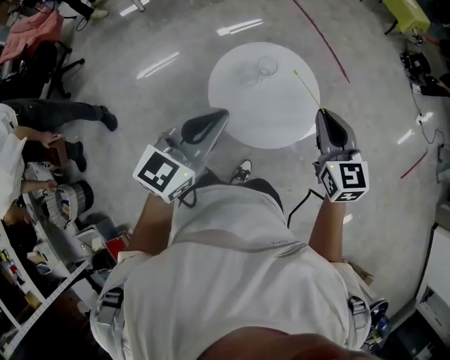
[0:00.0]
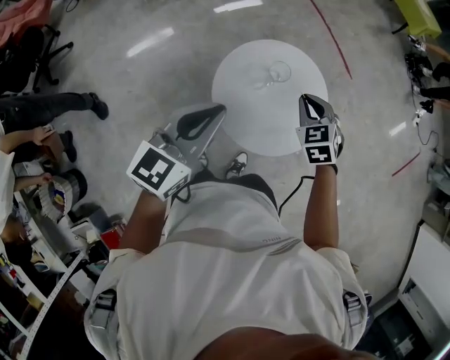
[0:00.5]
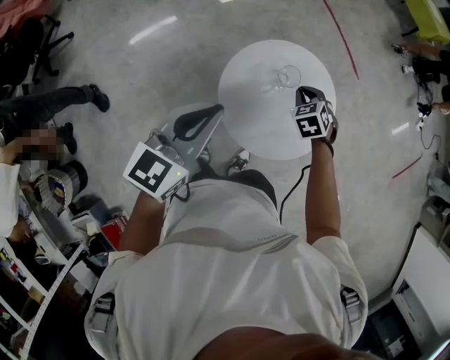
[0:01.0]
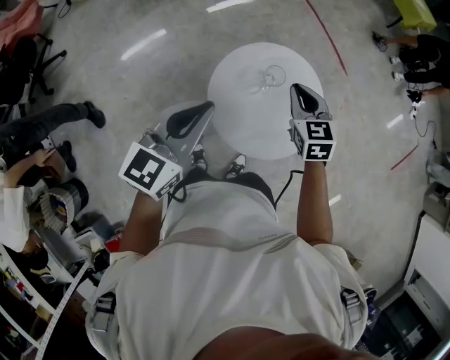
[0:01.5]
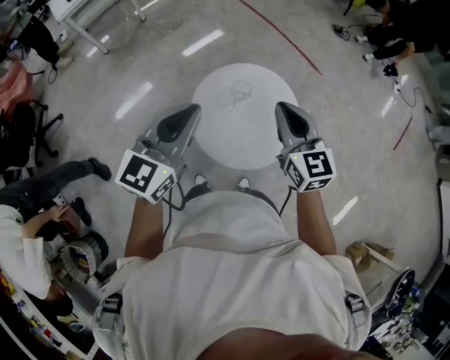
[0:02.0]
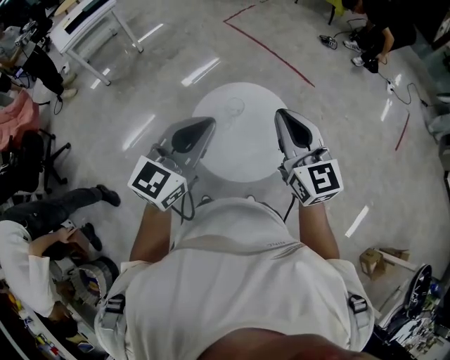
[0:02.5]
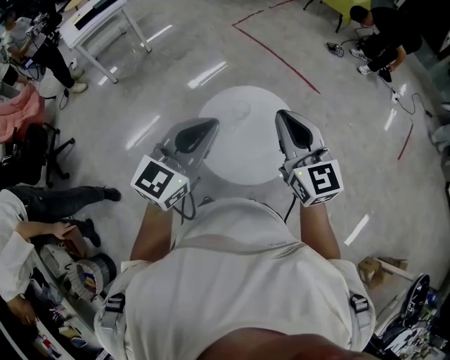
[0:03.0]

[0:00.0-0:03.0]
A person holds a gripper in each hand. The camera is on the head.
0:00.0 to 0:01.5: The left gripper is displaced to the left and forward by roughly 15 cm. Meanwhile the right gripper heads to the left, forward and downward, covering about 25 cm.
0:01.5 to 0:03.0: The right gripper is displaced upward, backward and to the right by roughly 30 cm, and angles its fingers upward, by about 30 degrees. The left gripper heads to the right and upward, covering roughly 20 cm, and rotates approximately 20 degrees.

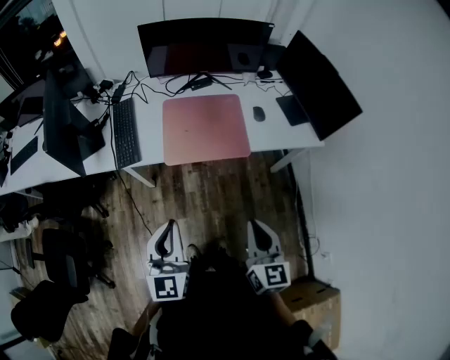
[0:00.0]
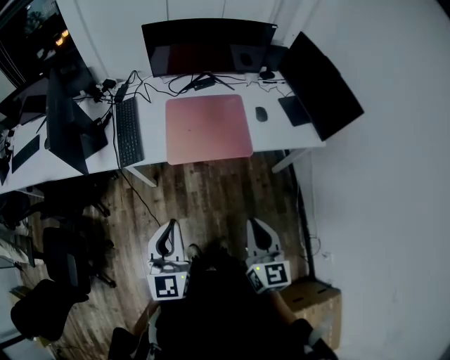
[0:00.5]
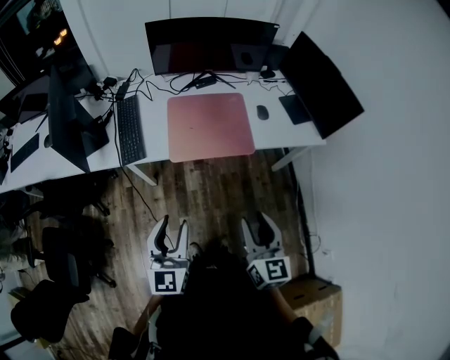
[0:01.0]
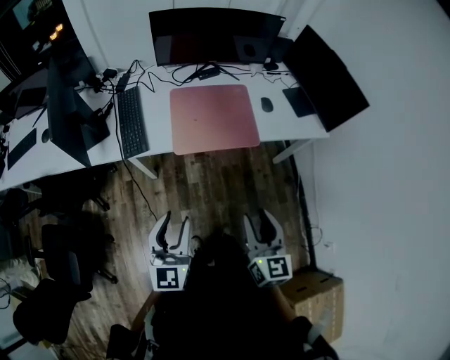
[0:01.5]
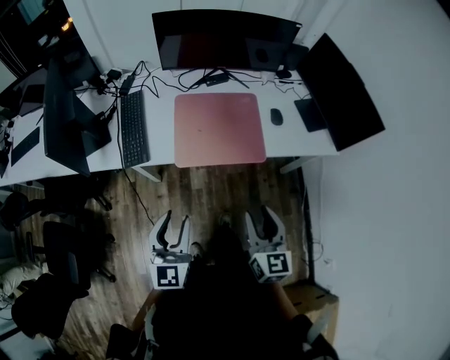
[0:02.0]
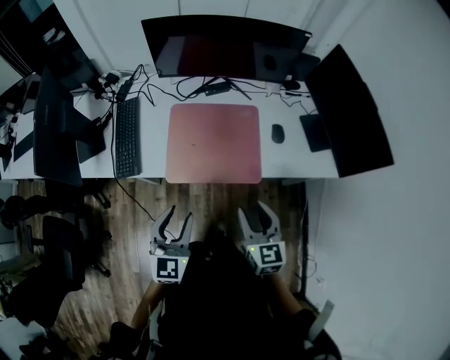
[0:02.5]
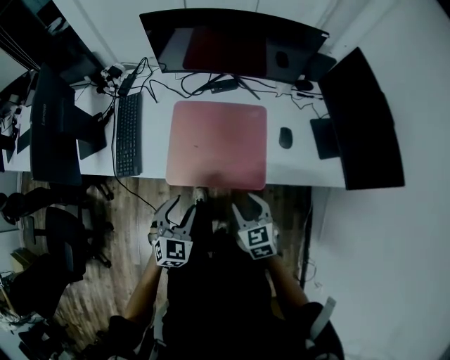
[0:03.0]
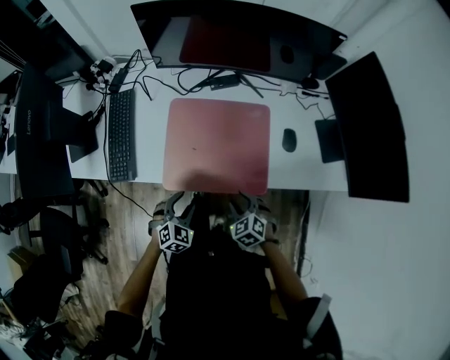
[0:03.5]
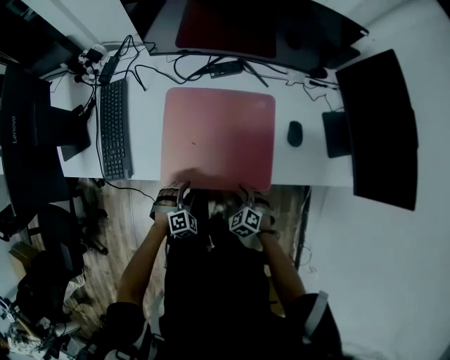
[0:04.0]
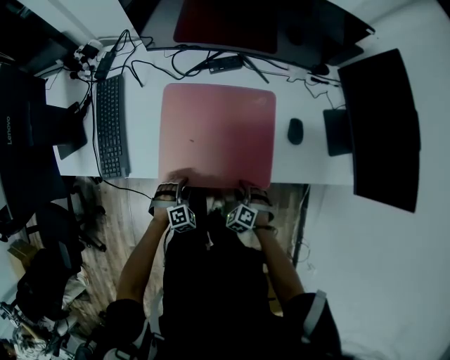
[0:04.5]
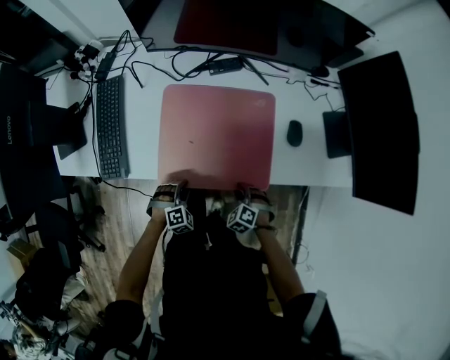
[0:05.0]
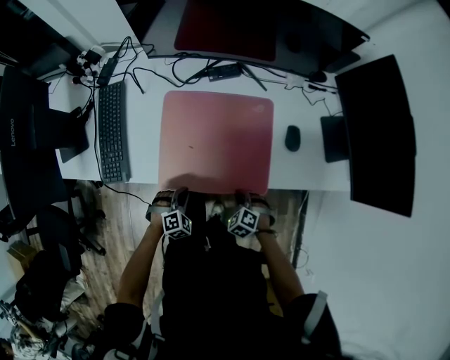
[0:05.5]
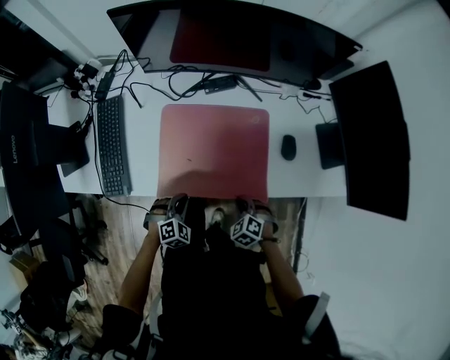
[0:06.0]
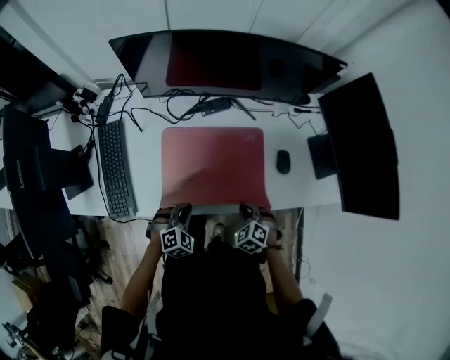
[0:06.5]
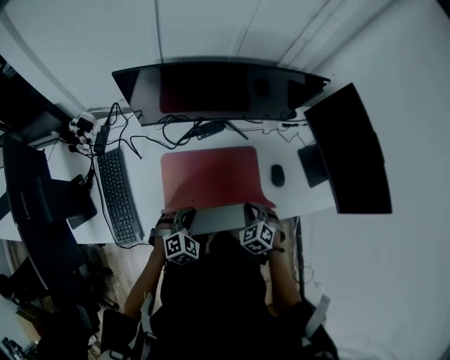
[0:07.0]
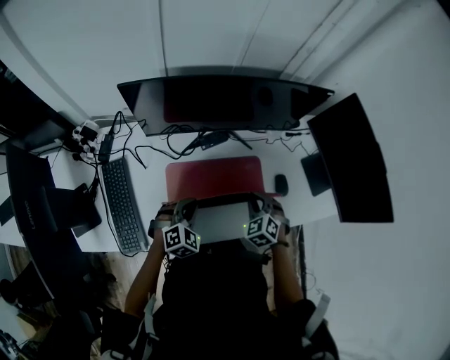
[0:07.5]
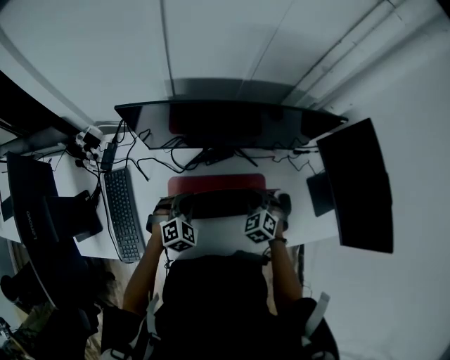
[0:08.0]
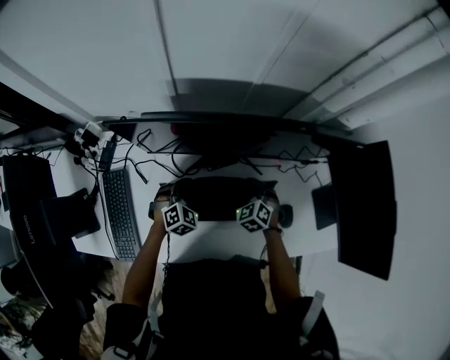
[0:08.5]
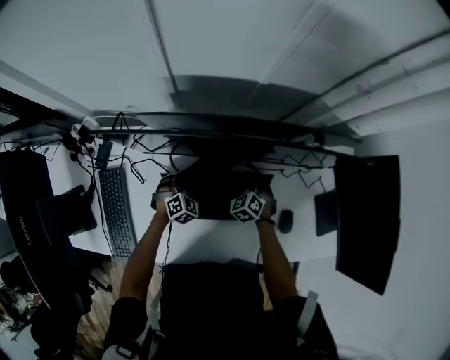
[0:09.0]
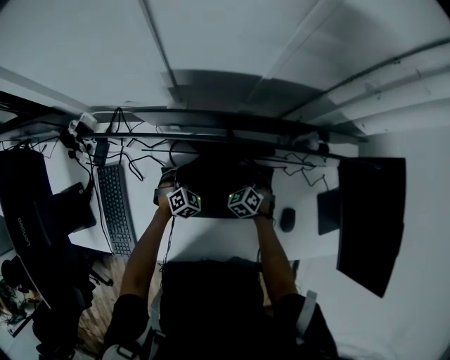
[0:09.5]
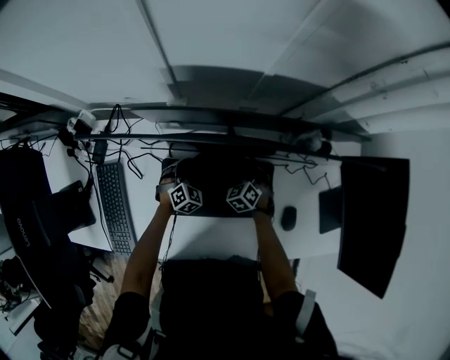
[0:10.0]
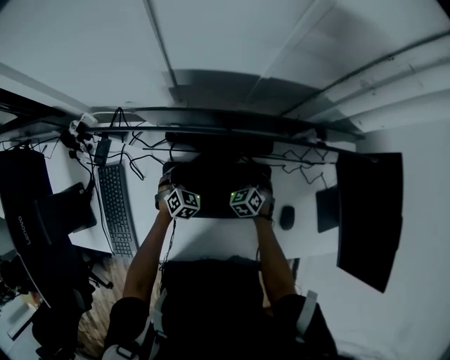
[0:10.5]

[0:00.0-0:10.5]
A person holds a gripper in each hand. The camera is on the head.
0:00.0 to 0:02.0: The right gripper moves forward, some 10 cm, and opens up; the left gripper shifts approximately 10 cm forward and downward, and opens its fingers.
0:02.0 to 0:04.0: The grippers both shift downward and forward by roughly 40 cm. The left gripper tips its fingers downward by about 50 degrees; the right gripper angles its fingers downward, by about 50 degrees.
0:04.0 to 0:06.5: Both grippers move upward and forward, roughly 10 cm. The left gripper closes up. The right gripper closes up.
0:06.5 to 0:08.5: Both grippers travel together forward, approximately 30 cm.
0:08.5 to 0:10.5: Both grippers travel together downward and forward, about 10 cm.

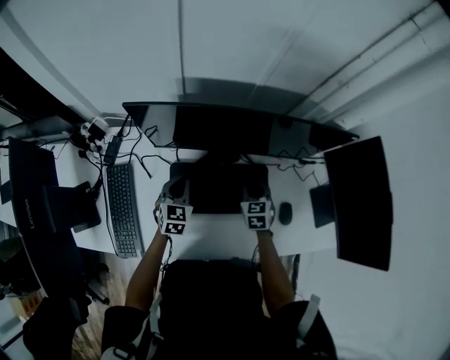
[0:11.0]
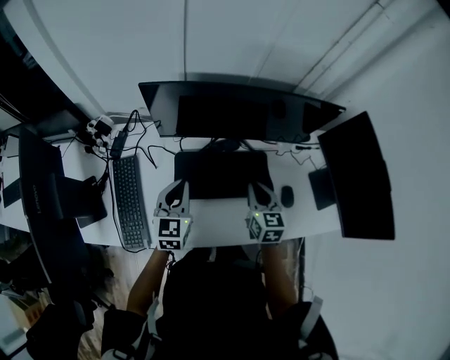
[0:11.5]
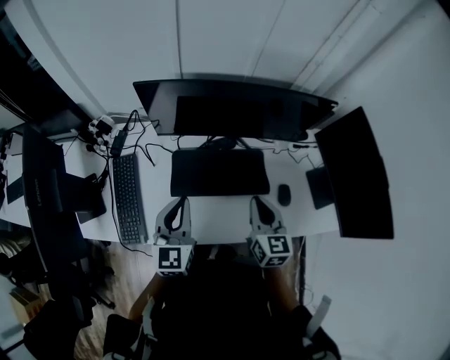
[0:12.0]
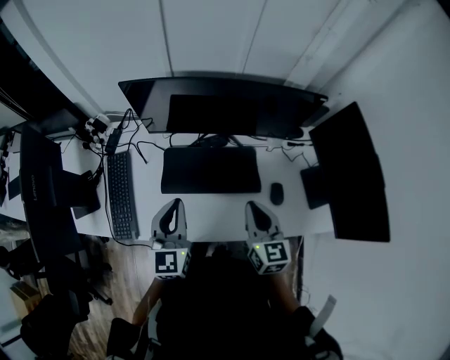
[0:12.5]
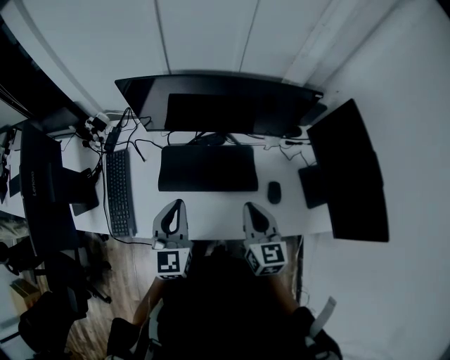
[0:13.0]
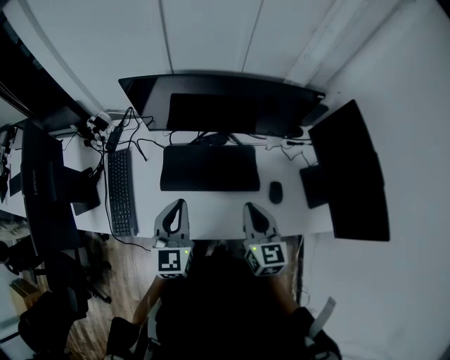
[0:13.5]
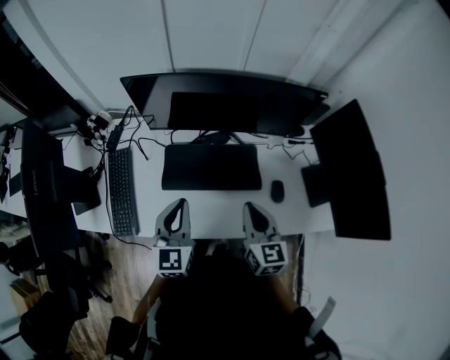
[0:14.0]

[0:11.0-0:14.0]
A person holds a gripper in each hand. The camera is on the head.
0:11.0 to 0:12.5: The left gripper travels upward and backward by roughly 25 cm, and swivels some 30 degrees; the right gripper moves backward and upward, approximately 25 cm, and rotates approximately 30 degrees.
0:12.5 to 0:14.0: The grippers stay close to where they were, moving slightly.

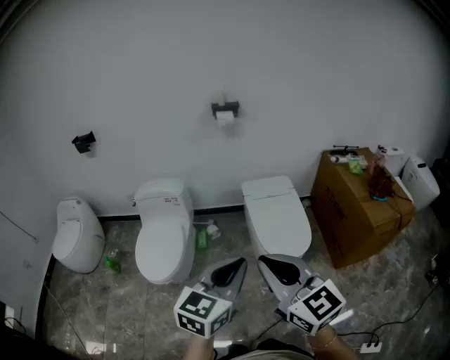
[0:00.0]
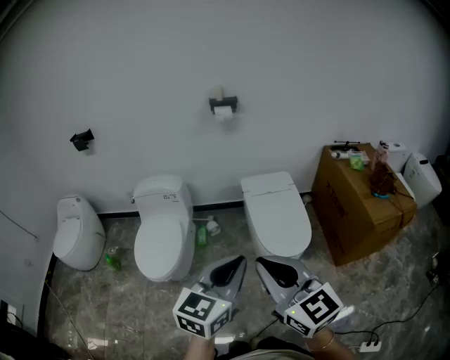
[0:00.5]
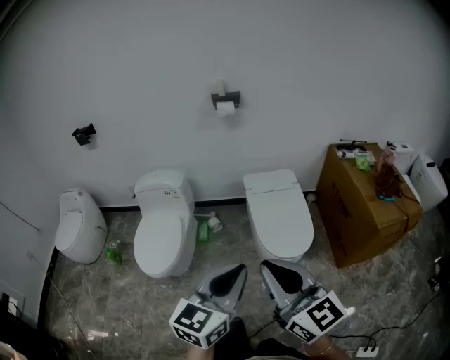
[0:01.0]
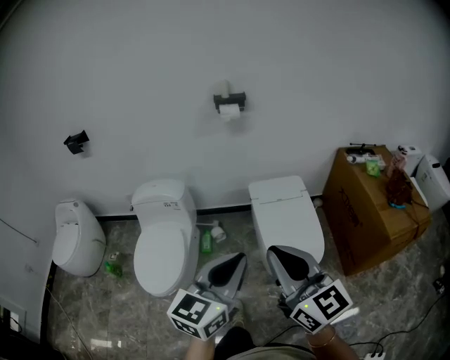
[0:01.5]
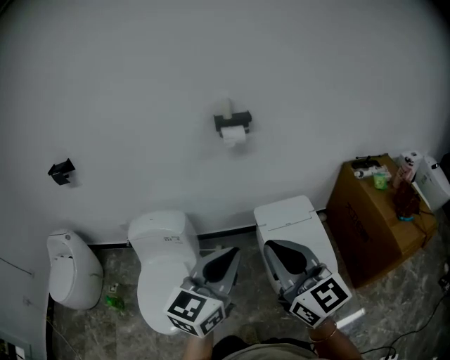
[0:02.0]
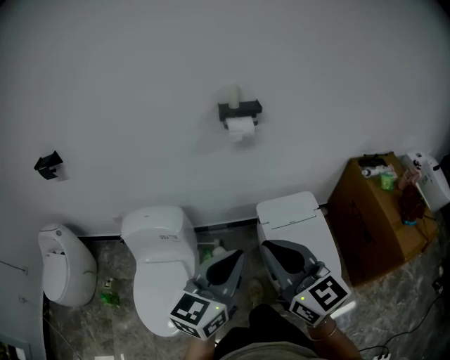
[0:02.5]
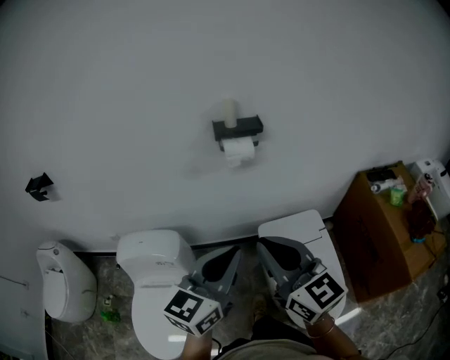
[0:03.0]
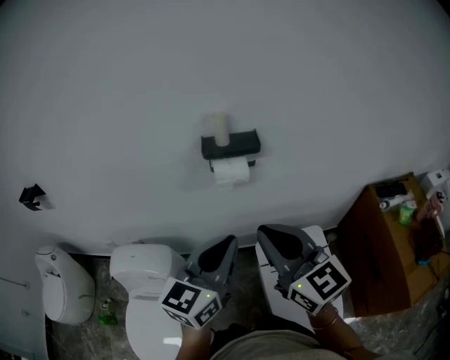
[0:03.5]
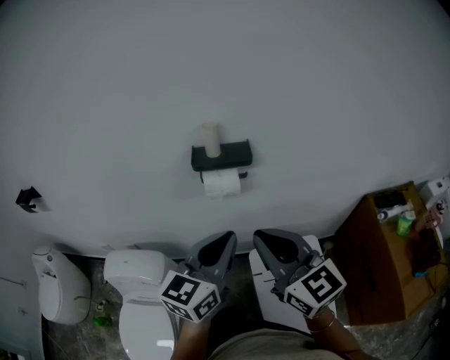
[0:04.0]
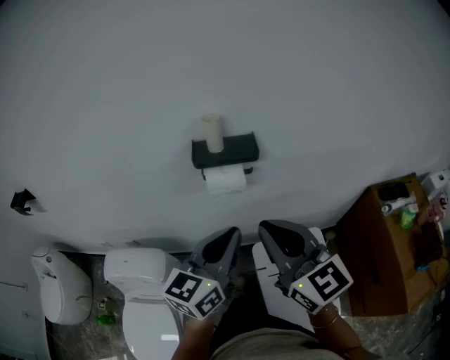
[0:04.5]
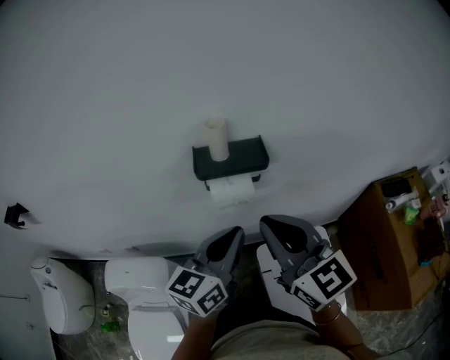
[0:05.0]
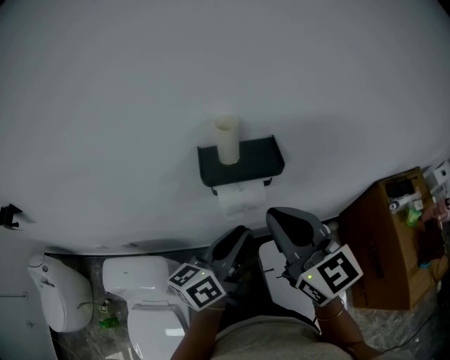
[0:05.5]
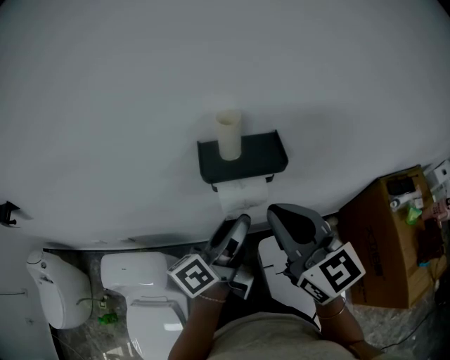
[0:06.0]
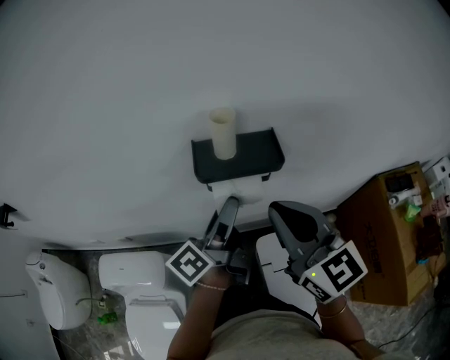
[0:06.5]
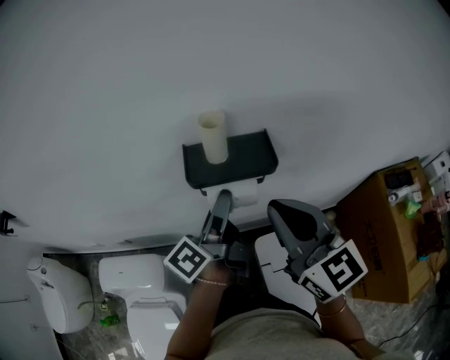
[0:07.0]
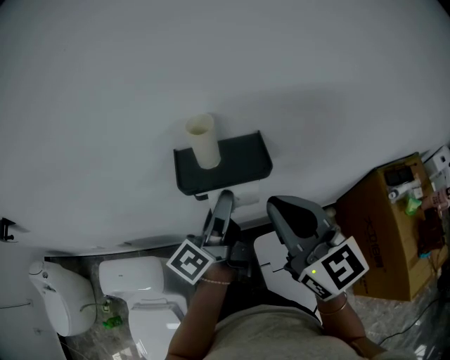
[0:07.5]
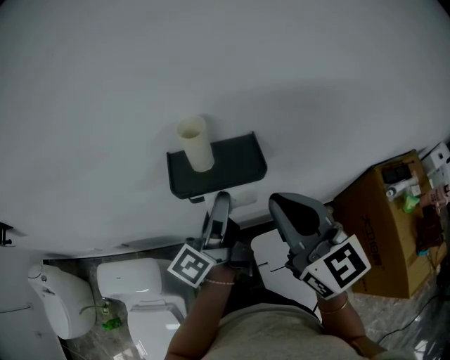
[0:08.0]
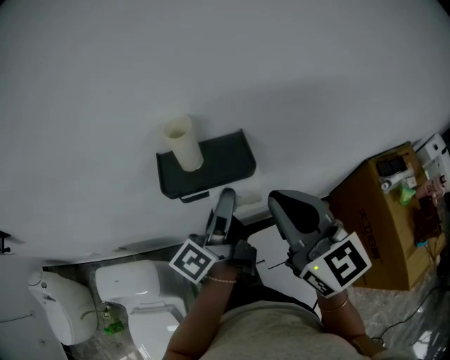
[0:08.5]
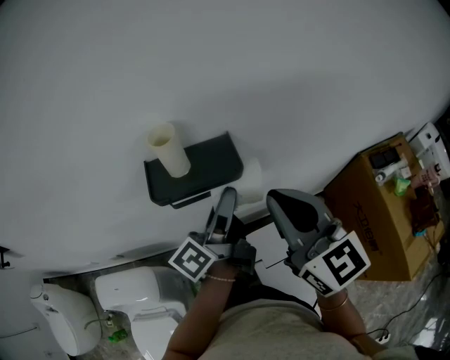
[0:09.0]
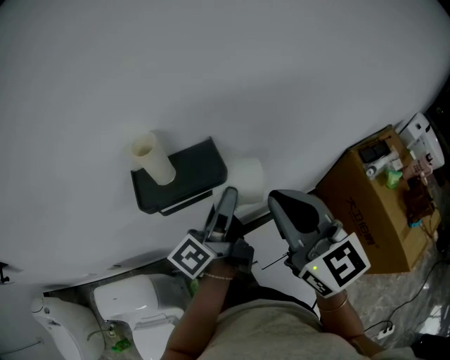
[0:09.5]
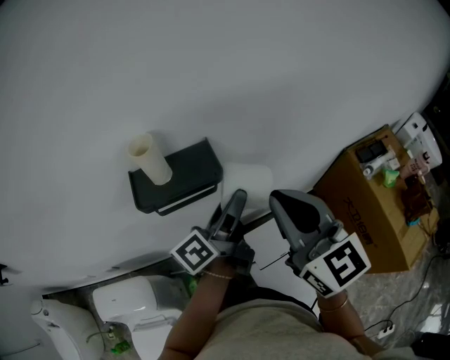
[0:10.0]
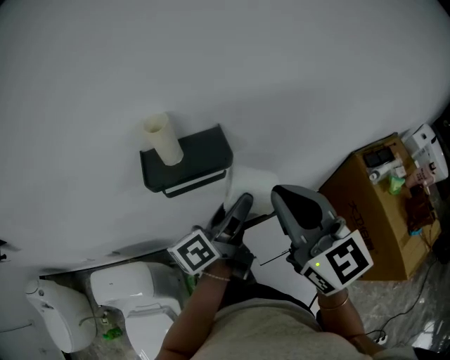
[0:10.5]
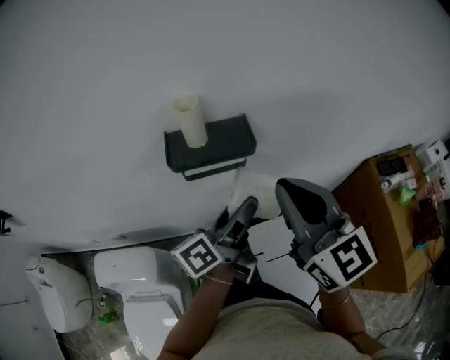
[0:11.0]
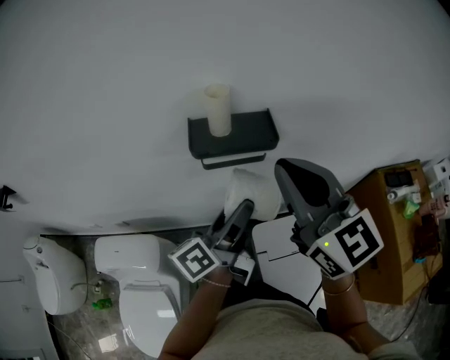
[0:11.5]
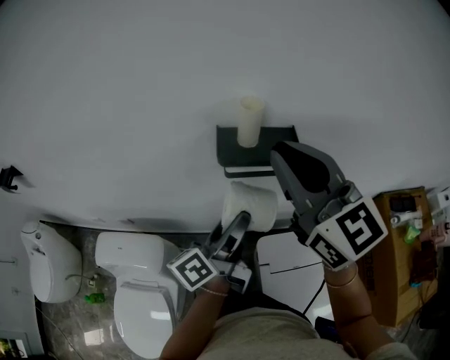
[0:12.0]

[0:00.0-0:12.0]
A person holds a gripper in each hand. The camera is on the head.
0:00.0 to 0:02.0: The grippers both shift forward by approximately 35 cm.
0:02.0 to 0:04.0: The two grippers travel together, forward, about 40 cm.
0:04.0 to 0:06.0: The right gripper travels forward by about 15 cm; the left gripper goes approximately 20 cm forward and downward, rolls counterclockwise, seen from behind, by about 50 degrees, and opens its fingers.
0:06.0 to 0:08.0: The right gripper moves to the right, approximately 5 cm; the left gripper goes some 5 cm forward.
0:08.0 to 0:10.0: The right gripper shifts approximately 5 cm to the right. The left gripper is displaced to the right by about 10 cm, and turns by about 20 degrees.
0:10.0 to 0:12.0: The right gripper goes roughly 15 cm to the left and upward, and swivels some 20 degrees; the left gripper goes about 20 cm to the left and backward, and turns by approximately 20 degrees.
